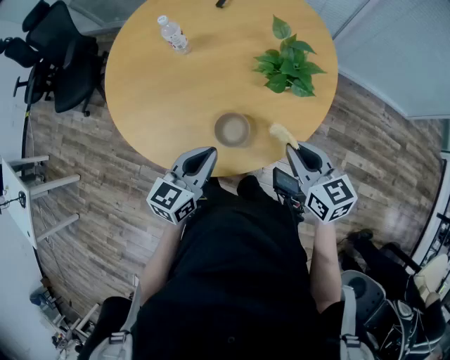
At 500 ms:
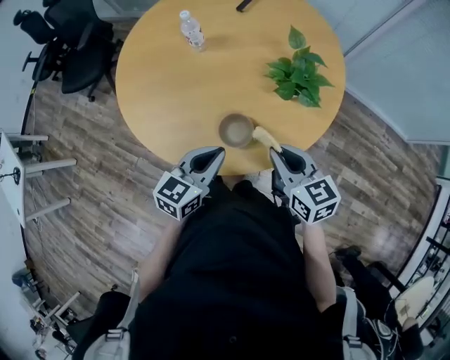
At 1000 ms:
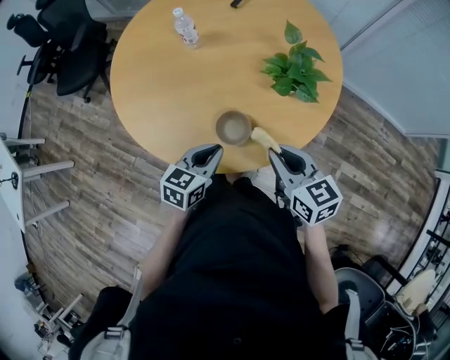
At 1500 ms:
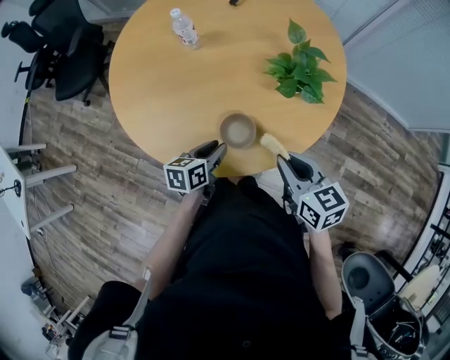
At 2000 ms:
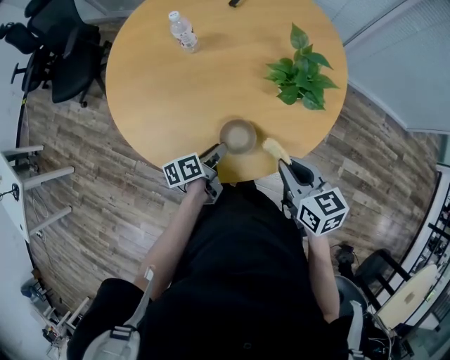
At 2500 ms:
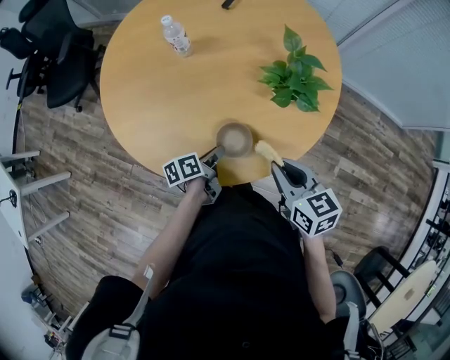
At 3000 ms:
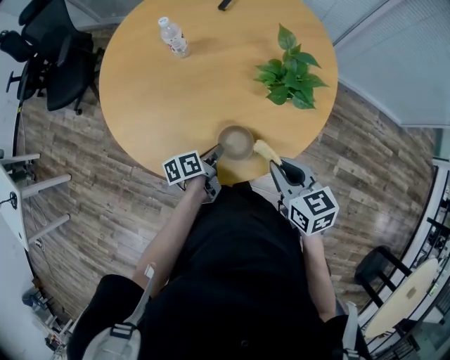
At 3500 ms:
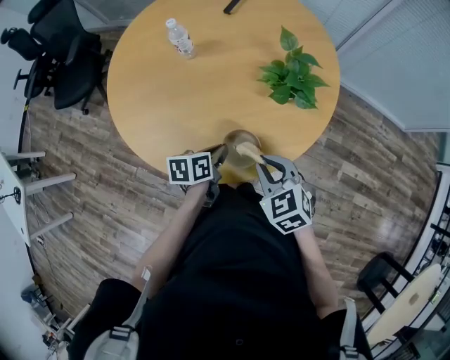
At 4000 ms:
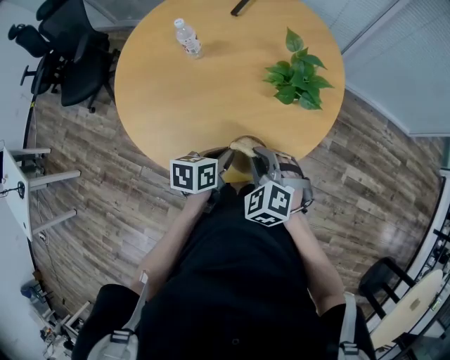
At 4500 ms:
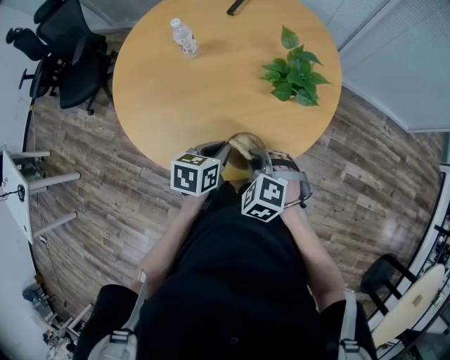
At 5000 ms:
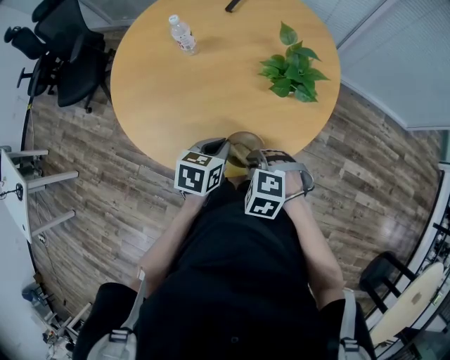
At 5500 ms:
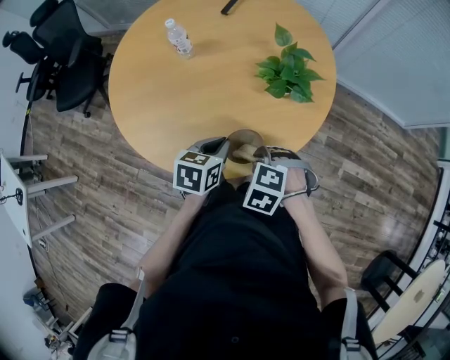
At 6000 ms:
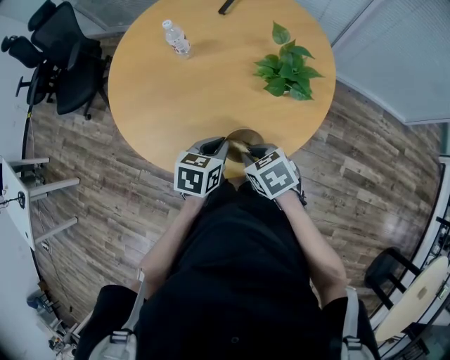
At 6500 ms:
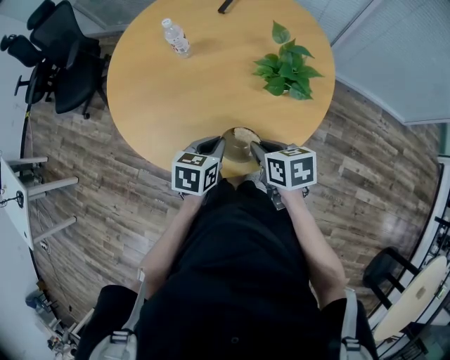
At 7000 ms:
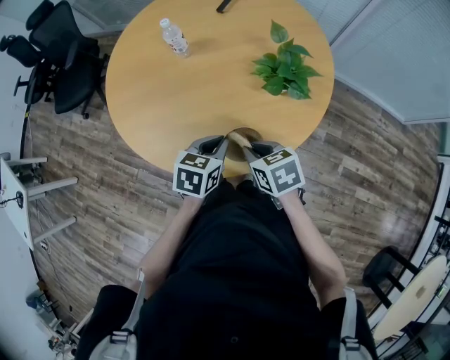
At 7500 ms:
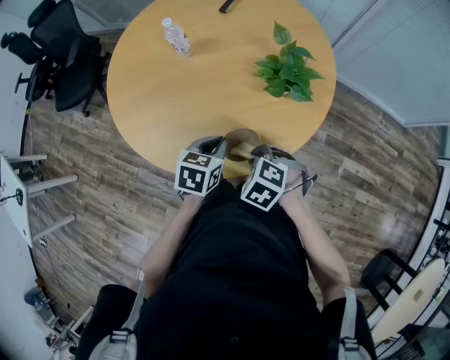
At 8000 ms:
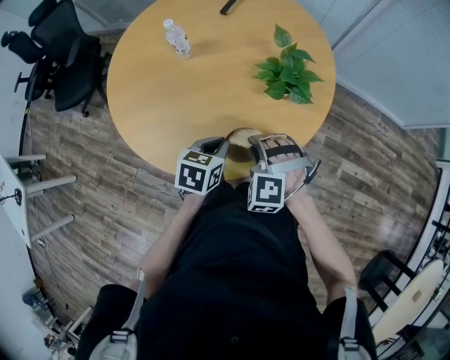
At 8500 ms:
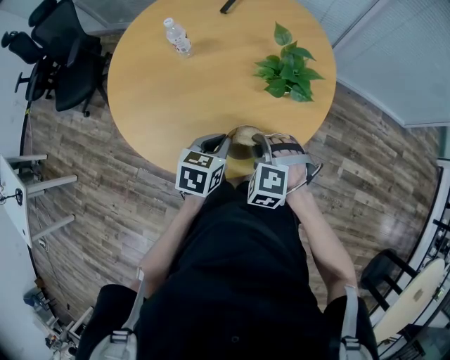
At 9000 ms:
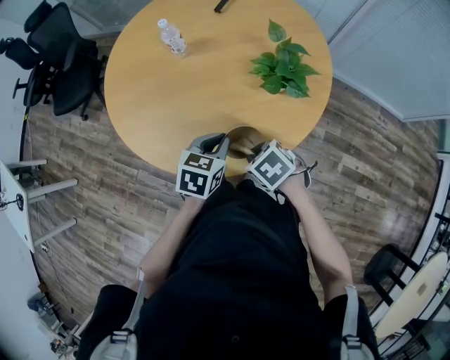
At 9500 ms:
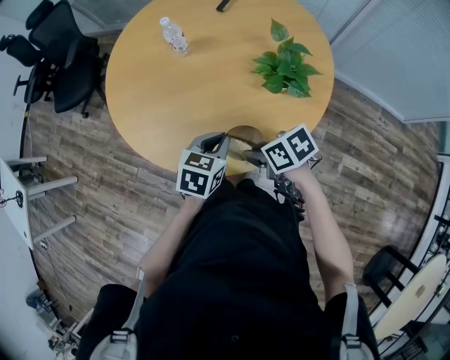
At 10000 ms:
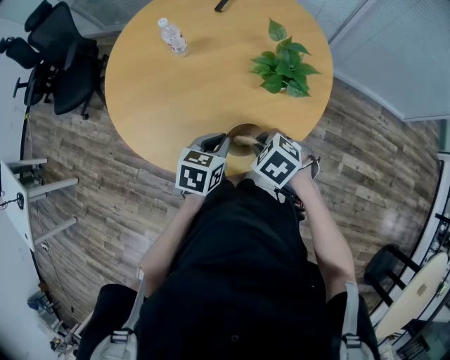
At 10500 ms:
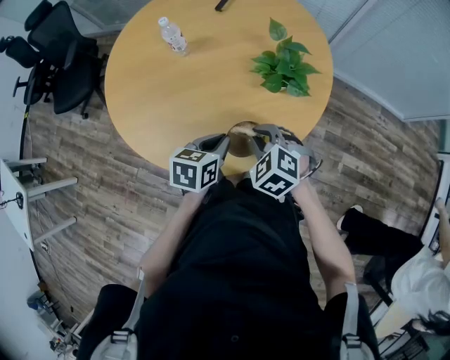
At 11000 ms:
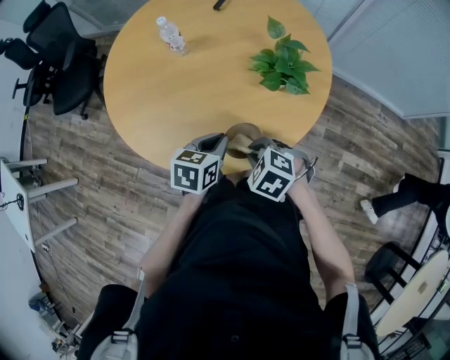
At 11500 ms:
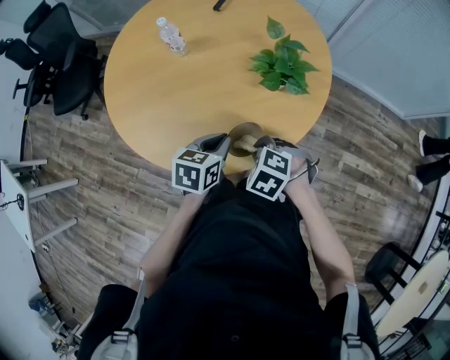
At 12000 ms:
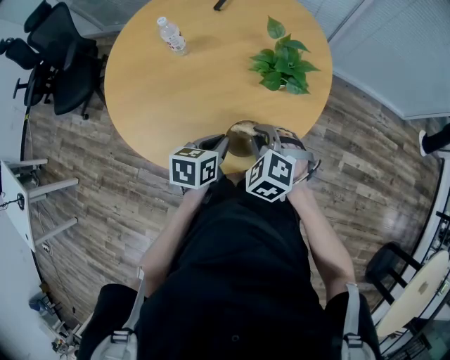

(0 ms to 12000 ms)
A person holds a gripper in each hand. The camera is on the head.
0 ms - 2000 ms: The left gripper goes about 15 cm downward, rotates around the line of its fingers by about 50 degrees, counterclockwise from behind, and opens its fingers.
2000 ms - 4000 ms: The left gripper goes about 10 cm upward, changes its angle by about 30 degrees, and closes up, while the right gripper is displaced to the left by approximately 10 cm, and twists approximately 60 degrees counterclockwise, seen from behind.
4000 ms - 6000 ms: The right gripper rotates around the line of its fingers by some 40 degrees, clockwise from behind.
6000 ms - 8000 ms: The right gripper rotates around the line of its fingers by some 70 degrees, counterclockwise from behind.
8000 ms - 10000 ms: The right gripper rotates around the line of its fingers by roughly 40 degrees, clockwise from behind.
10000 ms - 12000 ms: The right gripper changes its angle by about 30 degrees.

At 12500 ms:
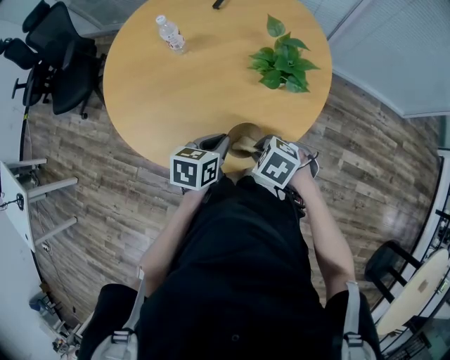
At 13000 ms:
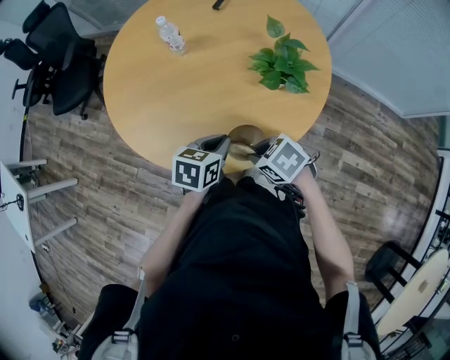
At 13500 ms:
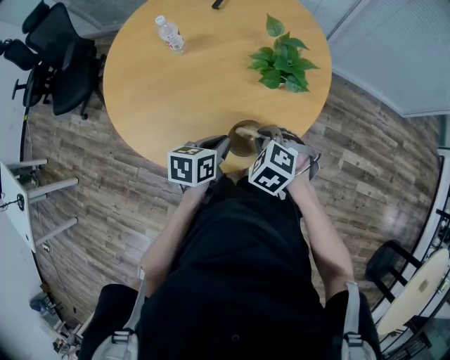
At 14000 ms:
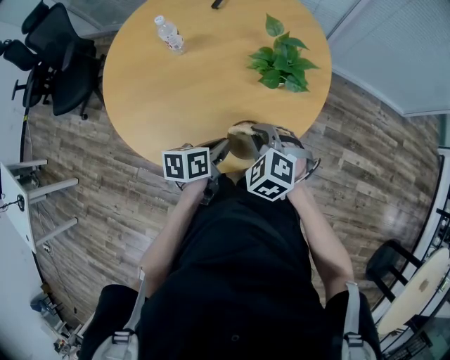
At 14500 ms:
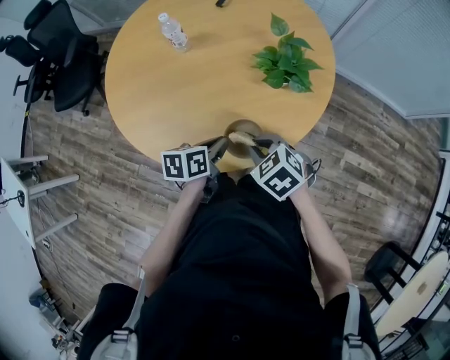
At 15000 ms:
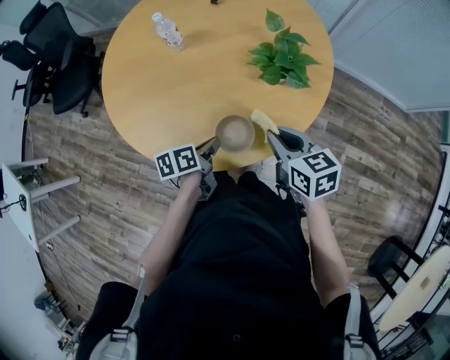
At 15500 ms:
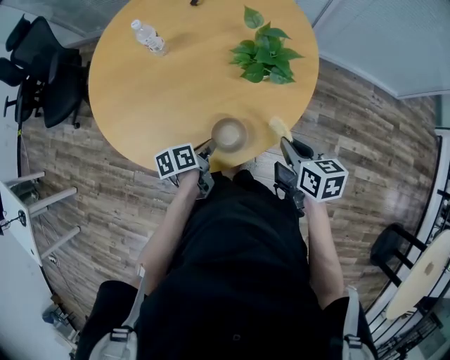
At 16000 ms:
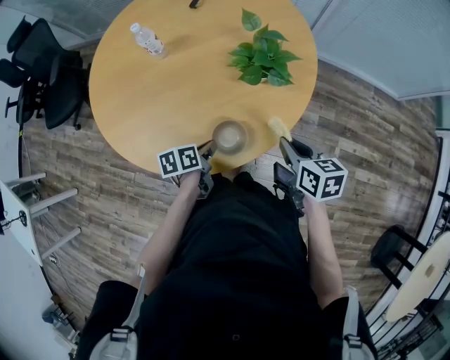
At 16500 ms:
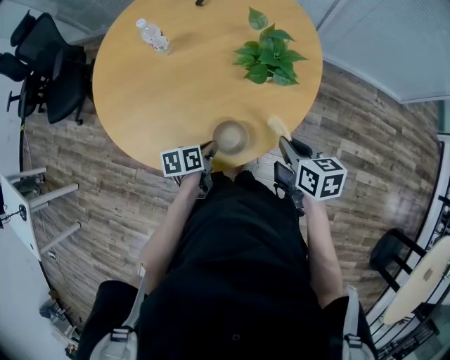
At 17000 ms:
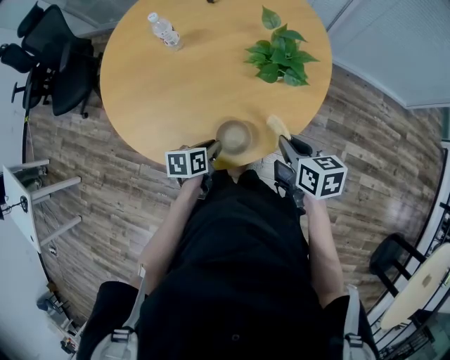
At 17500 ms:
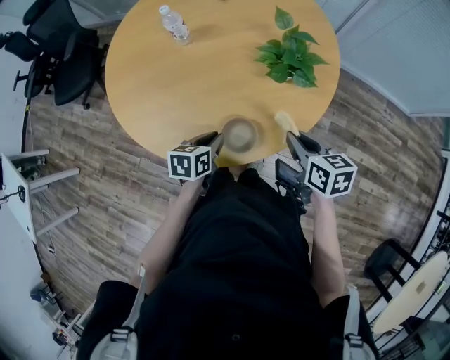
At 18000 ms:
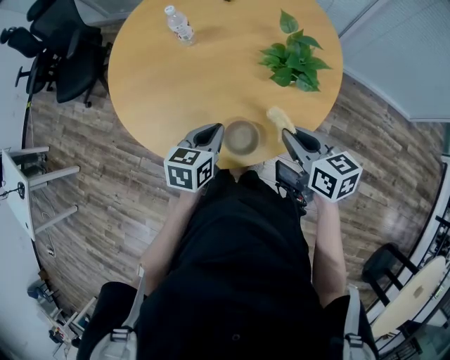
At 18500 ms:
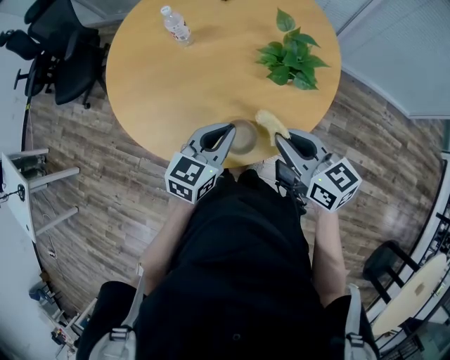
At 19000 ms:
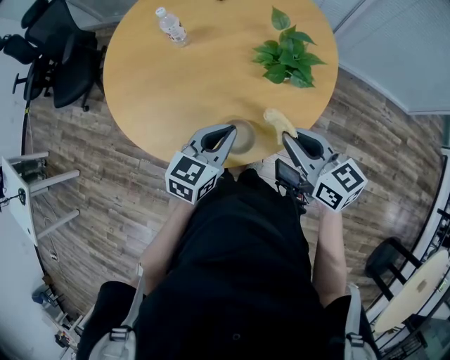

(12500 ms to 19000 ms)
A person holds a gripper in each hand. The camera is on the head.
12500 ms - 14500 ms: The left gripper turns by about 20 degrees.
14500 ms - 17000 ms: The left gripper goes roughly 5 cm downward. Meanwhile the right gripper is displaced to the right by some 10 cm, and twists approximately 50 degrees clockwise, seen from behind.
17000 ms - 19000 ms: The left gripper moves upward, some 15 cm, and swivels approximately 40 degrees. The right gripper heads upward, covering roughly 10 cm, and swivels roughly 30 degrees.

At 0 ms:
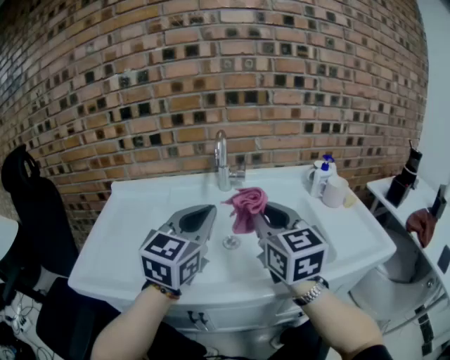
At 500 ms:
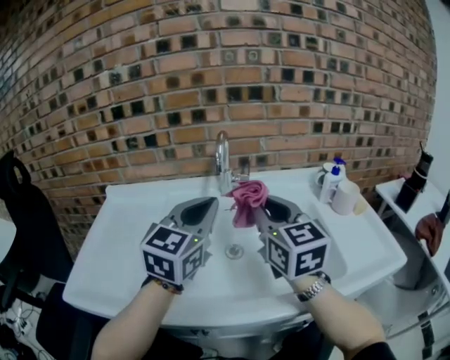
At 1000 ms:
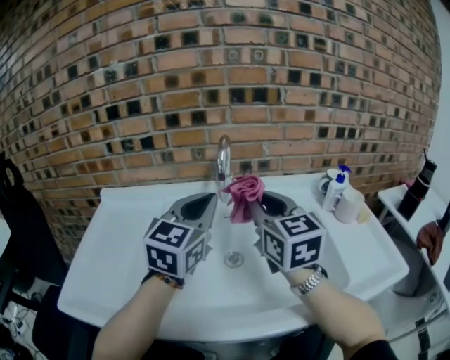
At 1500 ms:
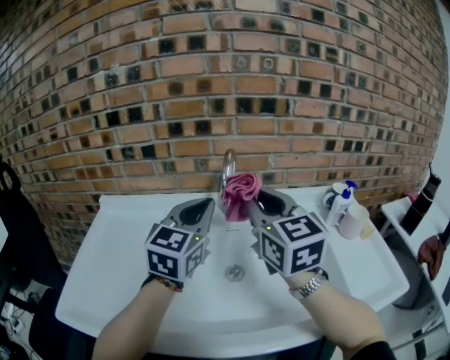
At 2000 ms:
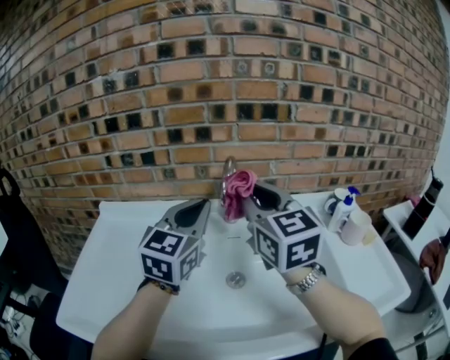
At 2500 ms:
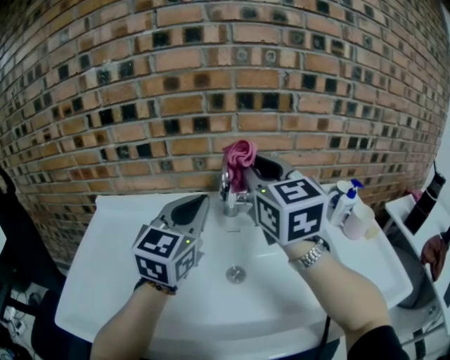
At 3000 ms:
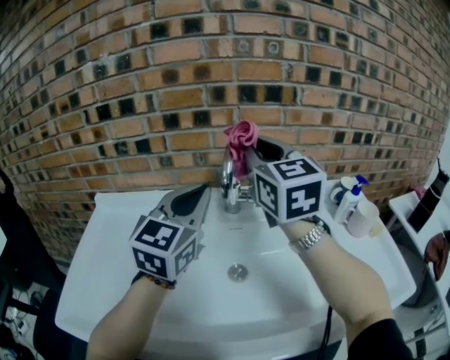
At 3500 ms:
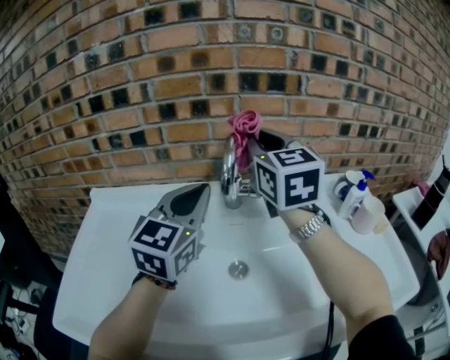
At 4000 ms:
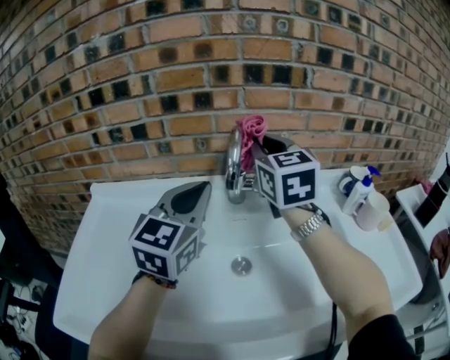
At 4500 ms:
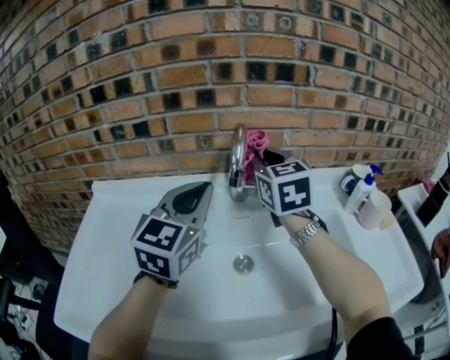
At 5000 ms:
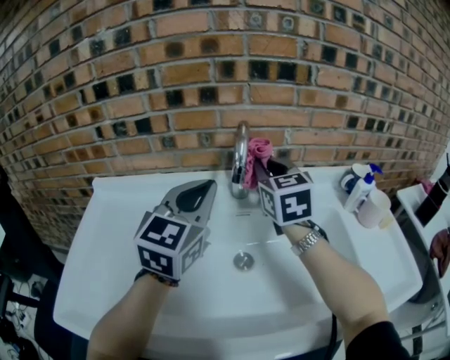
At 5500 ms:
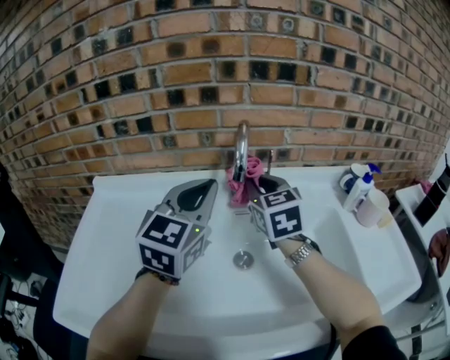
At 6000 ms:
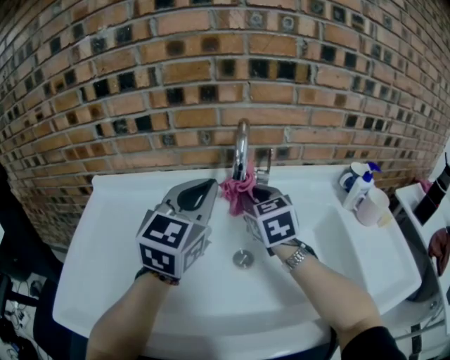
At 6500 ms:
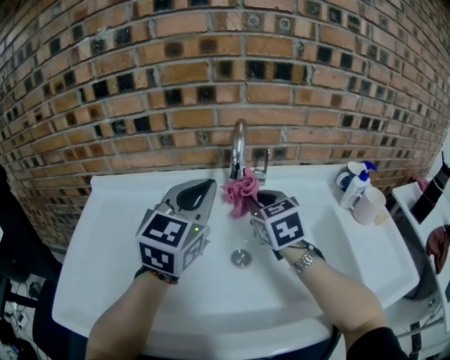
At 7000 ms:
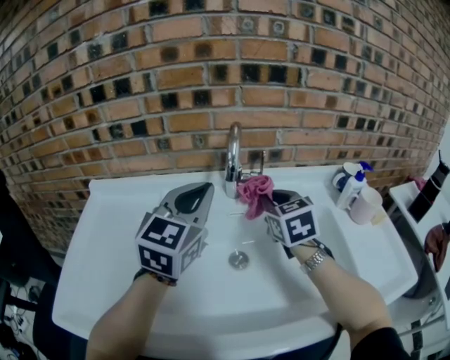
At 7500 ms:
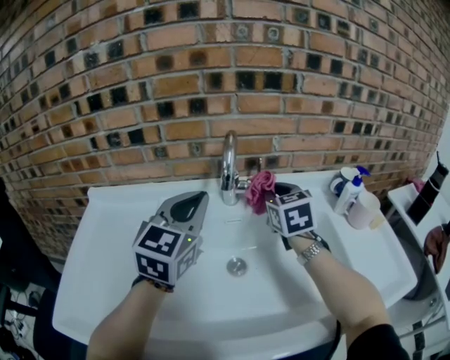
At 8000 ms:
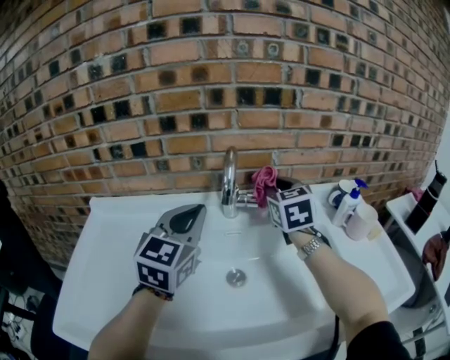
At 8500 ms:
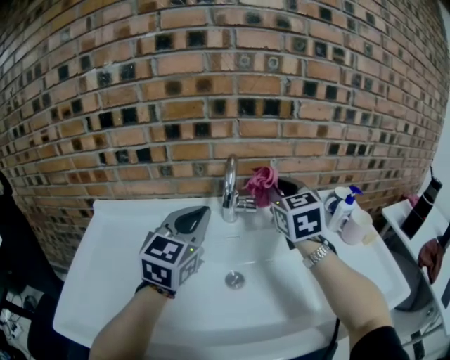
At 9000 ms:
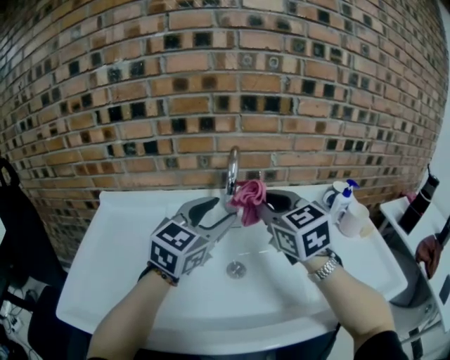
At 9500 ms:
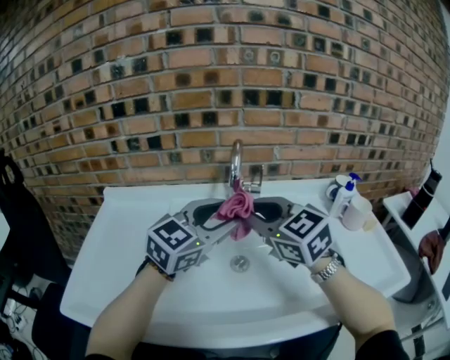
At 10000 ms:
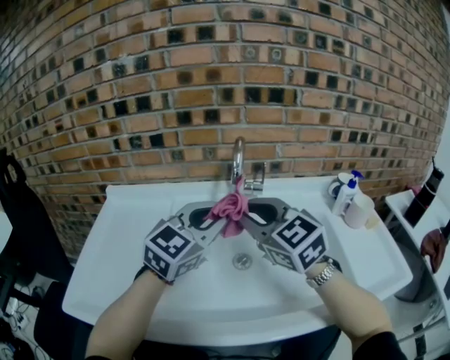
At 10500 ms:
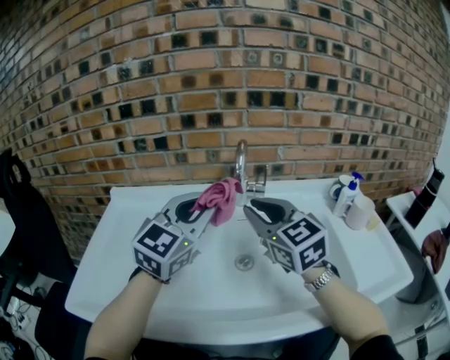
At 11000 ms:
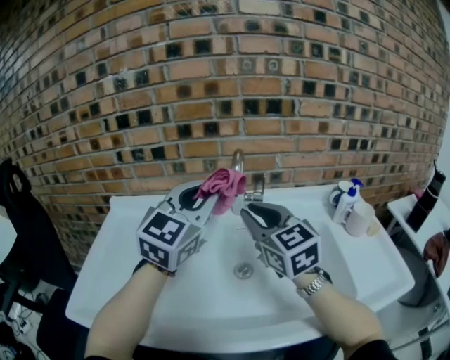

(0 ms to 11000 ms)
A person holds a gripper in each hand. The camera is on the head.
0 ms - 2000 ms: The left gripper goes approximately 15 cm forward, while the right gripper is displaced forward and upward by approximately 20 cm.
2000 ms - 3500 ms: The right gripper travels forward by approximately 10 cm.
3500 ms - 5500 ms: The right gripper shifts some 15 cm downward.
5500 ms - 7500 ms: The right gripper travels to the right by about 5 cm.
7500 ms - 9000 ms: The right gripper moves backward and upward, approximately 15 cm; the left gripper shifts by about 5 cm, and opens its fingers.
9000 ms - 11000 ms: The left gripper shifts roughly 10 cm upward, and closes up.
